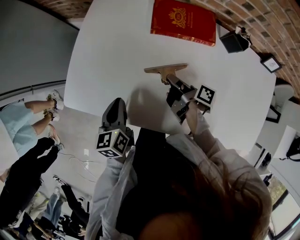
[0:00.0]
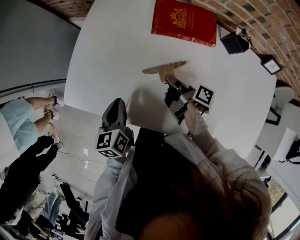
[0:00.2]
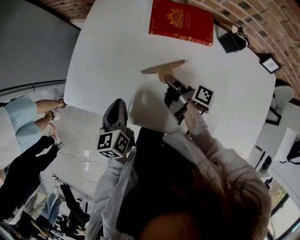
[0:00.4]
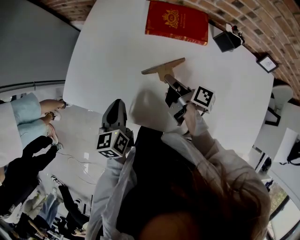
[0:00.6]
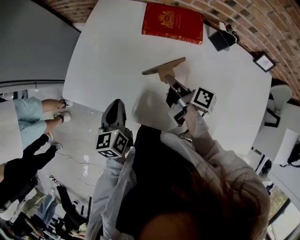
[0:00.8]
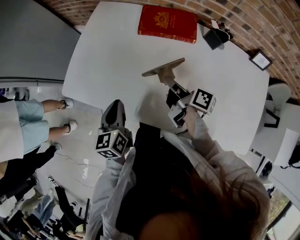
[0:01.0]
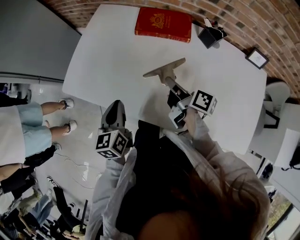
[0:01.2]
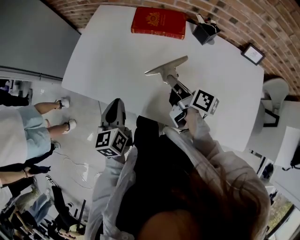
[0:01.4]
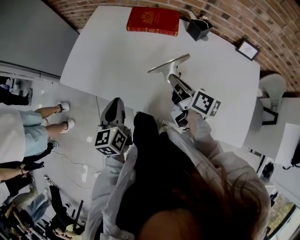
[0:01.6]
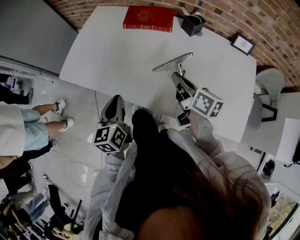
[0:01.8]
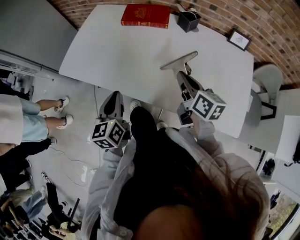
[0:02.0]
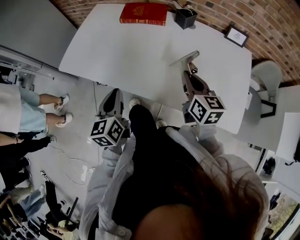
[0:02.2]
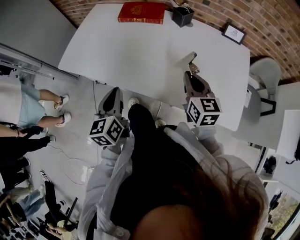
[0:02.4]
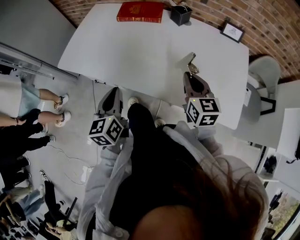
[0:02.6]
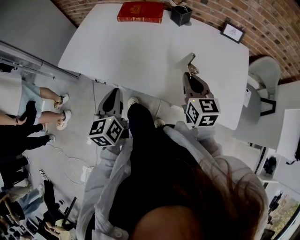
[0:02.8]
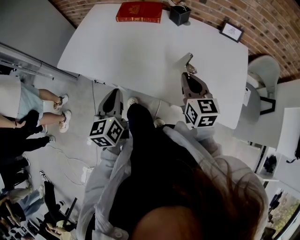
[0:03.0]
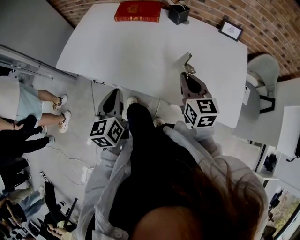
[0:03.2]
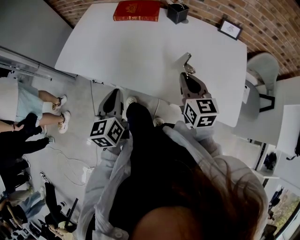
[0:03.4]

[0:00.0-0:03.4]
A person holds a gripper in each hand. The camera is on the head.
0.0 to 1.6 s: The right gripper moves backward, upward and to the right, roughly 25 cm, and changes its angle by some 40 degrees. Meanwhile the left gripper goes about 20 cm backward, to the right and upward.
1.6 to 3.4 s: Both grippers move backward and to the right, approximately 15 cm. The right gripper twists roughly 50 degrees counterclockwise, seen from behind.

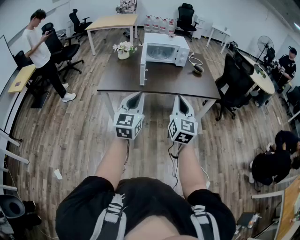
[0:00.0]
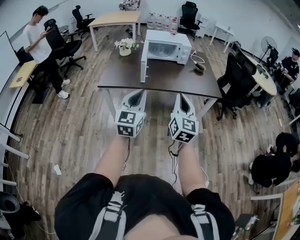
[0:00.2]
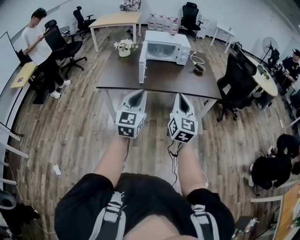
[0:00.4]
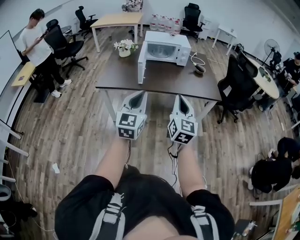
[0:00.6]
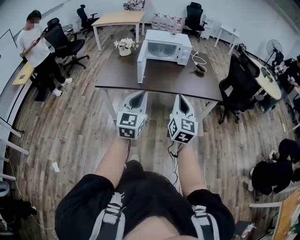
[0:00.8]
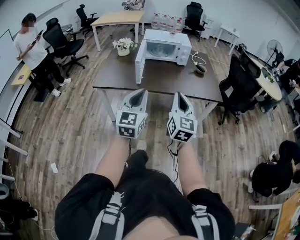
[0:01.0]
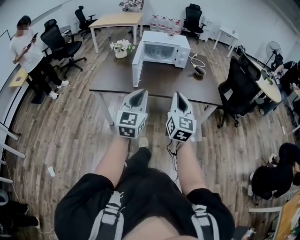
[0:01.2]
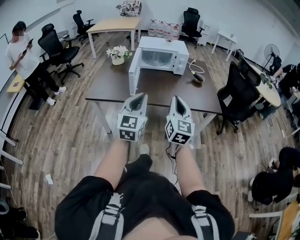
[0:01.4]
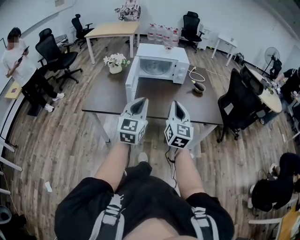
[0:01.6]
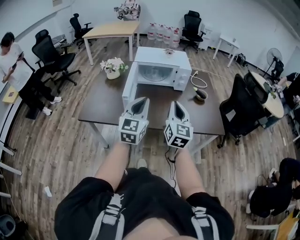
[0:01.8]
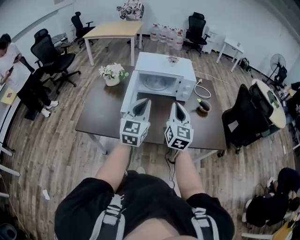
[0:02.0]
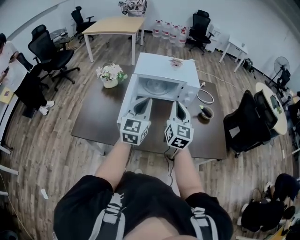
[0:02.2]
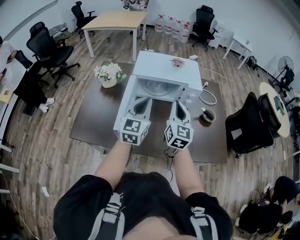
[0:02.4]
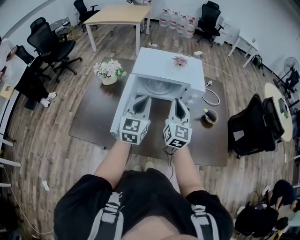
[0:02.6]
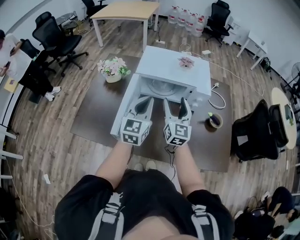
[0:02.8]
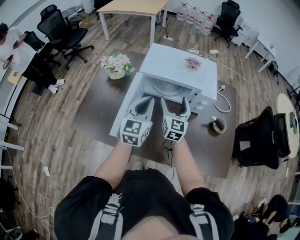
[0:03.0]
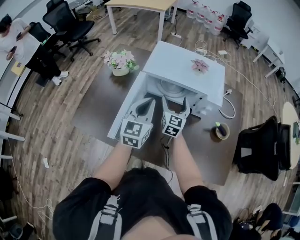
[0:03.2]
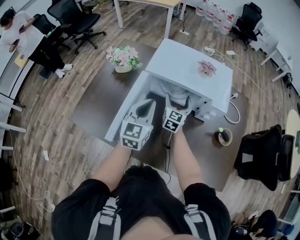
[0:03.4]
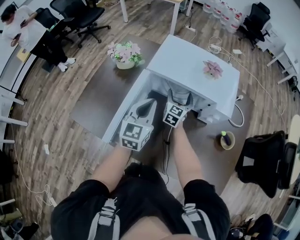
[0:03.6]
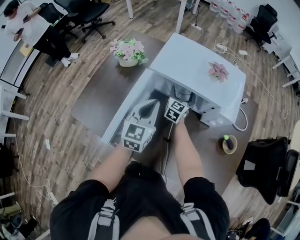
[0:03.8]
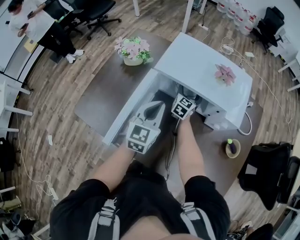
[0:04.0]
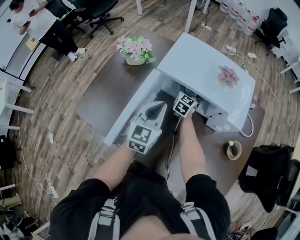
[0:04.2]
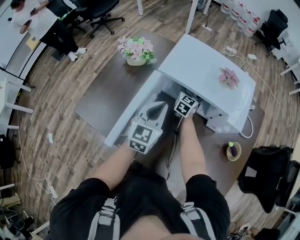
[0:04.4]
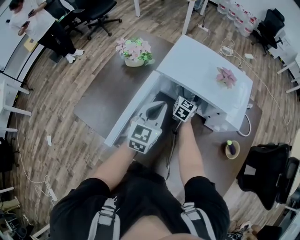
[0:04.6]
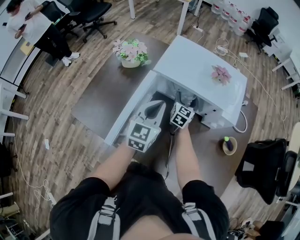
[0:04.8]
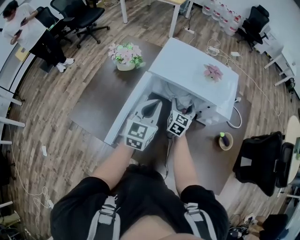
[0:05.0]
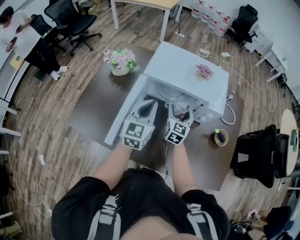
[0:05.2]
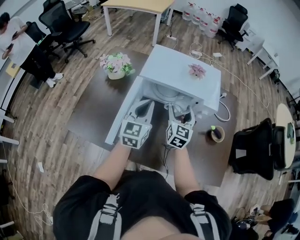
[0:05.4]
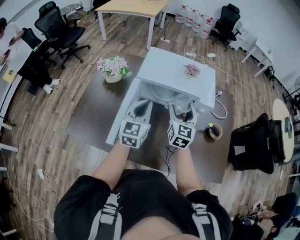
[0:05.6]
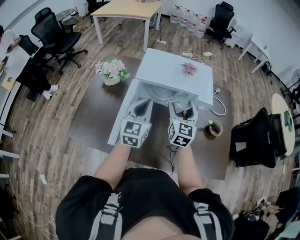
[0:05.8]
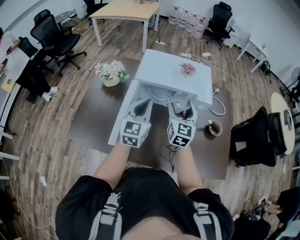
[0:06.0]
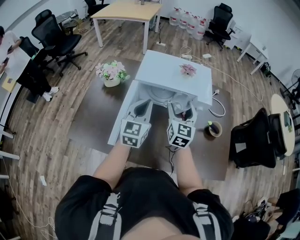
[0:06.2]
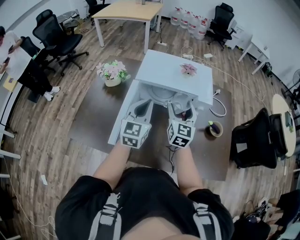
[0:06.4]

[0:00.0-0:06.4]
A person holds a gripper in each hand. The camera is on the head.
0.0 to 1.6 s: Both grippers move forward, some 25 cm.
1.6 to 3.2 s: Both grippers are carried forward, some 50 cm. The right gripper opens its fingers.
3.2 to 4.8 s: The right gripper goes some 15 cm forward and downward. The left gripper is displaced forward and downward by roughly 10 cm.
4.8 to 6.4 s: The right gripper goes approximately 25 cm upward and backward; the left gripper shifts roughly 10 cm upward and backward.

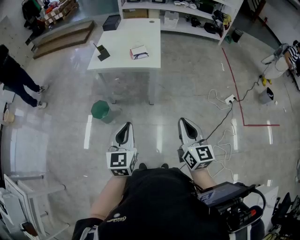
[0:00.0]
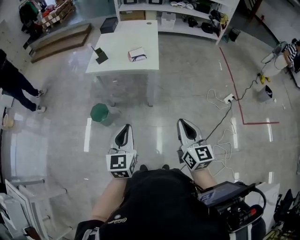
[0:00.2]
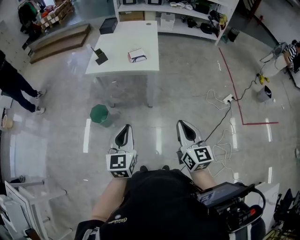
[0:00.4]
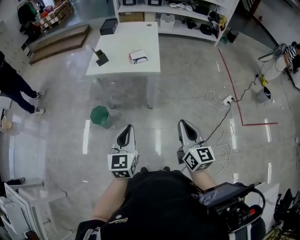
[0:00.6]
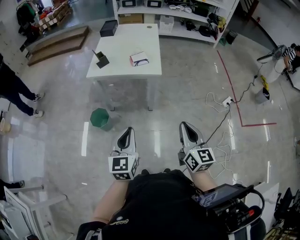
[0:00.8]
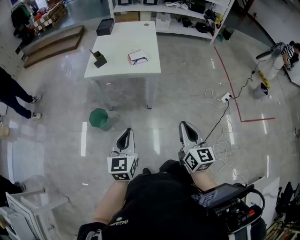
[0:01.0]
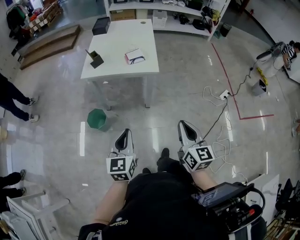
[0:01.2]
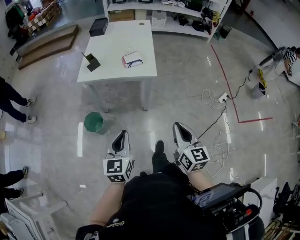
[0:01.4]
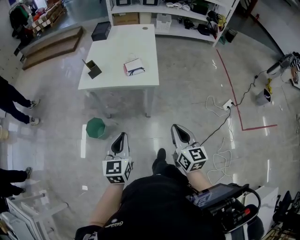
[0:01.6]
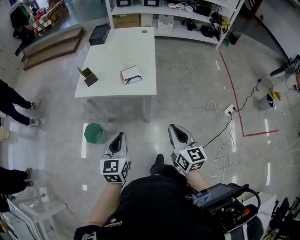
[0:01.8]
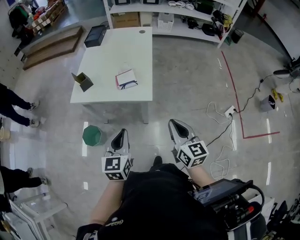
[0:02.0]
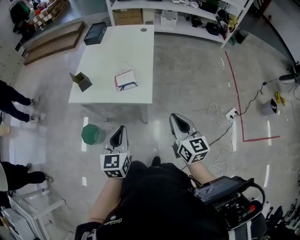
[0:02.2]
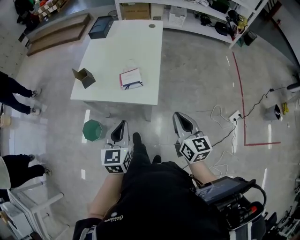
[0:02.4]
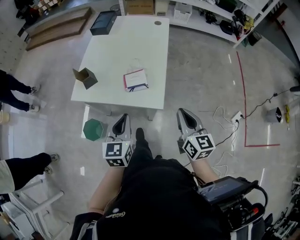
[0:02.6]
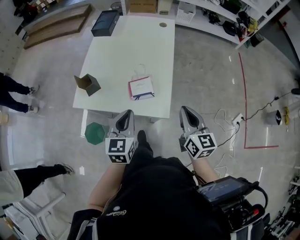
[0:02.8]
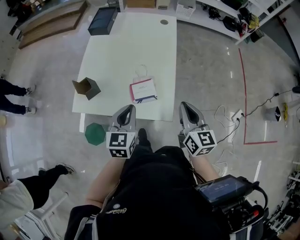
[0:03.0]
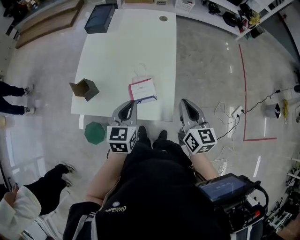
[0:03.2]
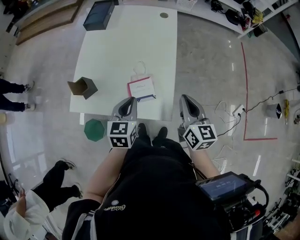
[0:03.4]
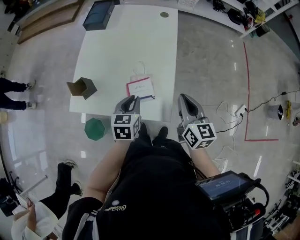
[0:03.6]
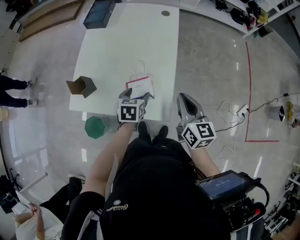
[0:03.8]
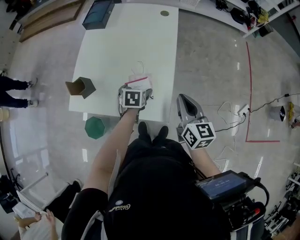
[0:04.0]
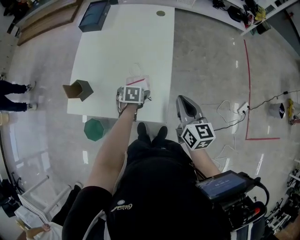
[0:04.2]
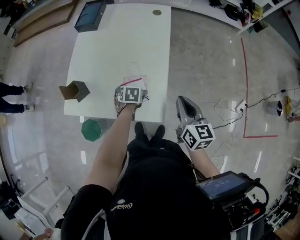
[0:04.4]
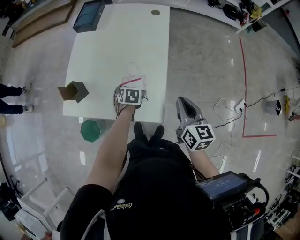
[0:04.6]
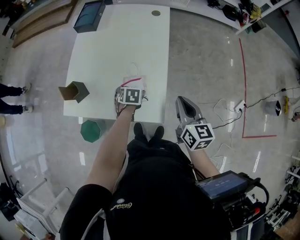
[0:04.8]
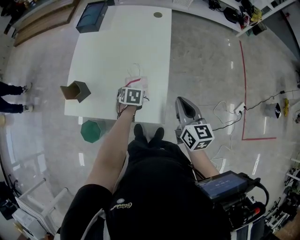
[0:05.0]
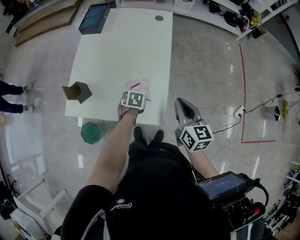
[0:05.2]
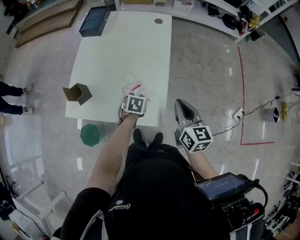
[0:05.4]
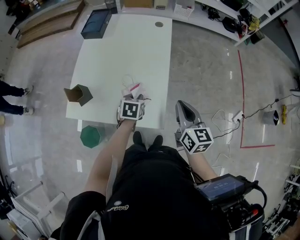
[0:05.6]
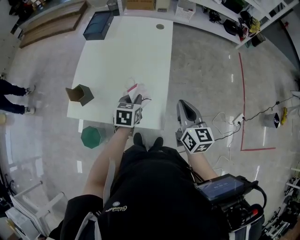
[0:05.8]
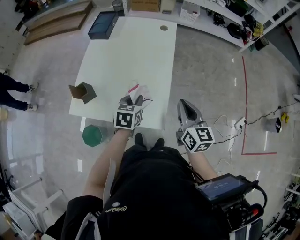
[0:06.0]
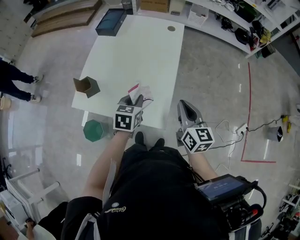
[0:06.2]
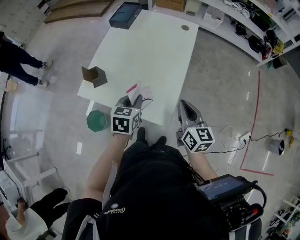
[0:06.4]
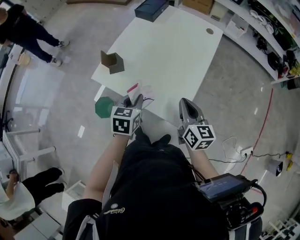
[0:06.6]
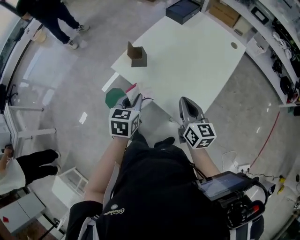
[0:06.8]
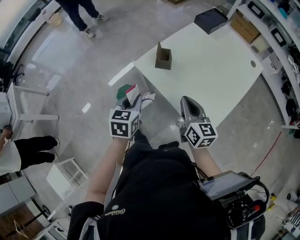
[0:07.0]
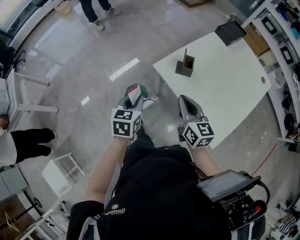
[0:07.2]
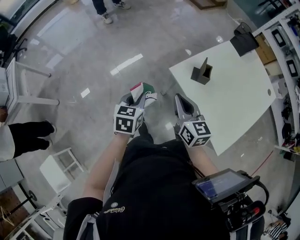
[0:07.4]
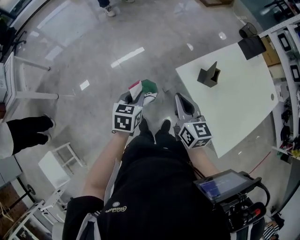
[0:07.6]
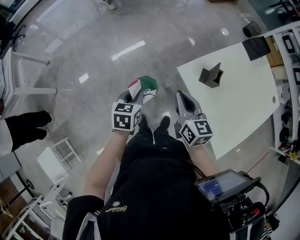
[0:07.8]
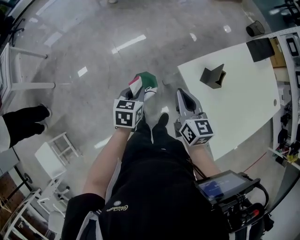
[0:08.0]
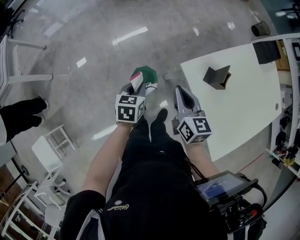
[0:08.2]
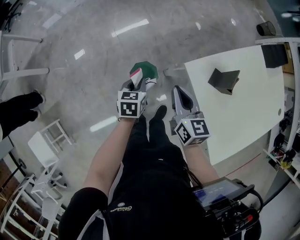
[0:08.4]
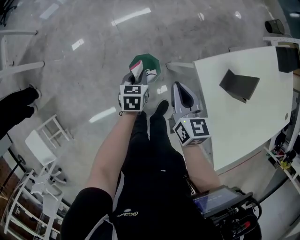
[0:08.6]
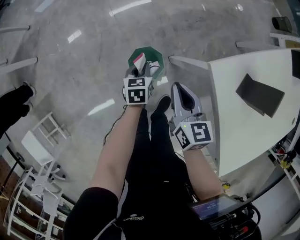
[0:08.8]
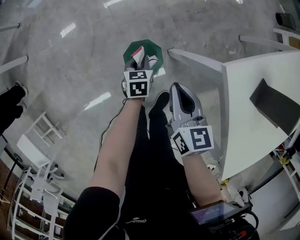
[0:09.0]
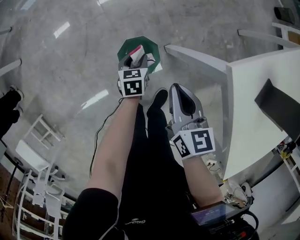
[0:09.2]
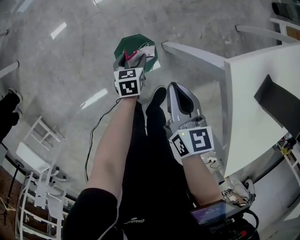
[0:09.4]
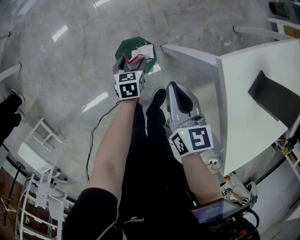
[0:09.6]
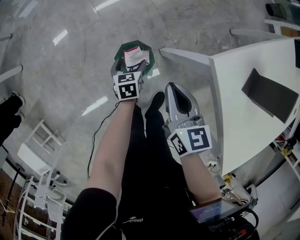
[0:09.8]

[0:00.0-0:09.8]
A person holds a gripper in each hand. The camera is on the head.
0.0 to 1.4 s: Both grippers travel together forward, some 10 cm.
1.4 to 2.8 s: The pair of grippers is taken forward, roughly 40 cm.
2.8 to 4.2 s: The left gripper is displaced downward and forward by approximately 30 cm, angles its fingers downward, by approximately 40 degrees, and opens up. The right gripper goes about 10 cm forward.
4.2 to 5.6 s: The left gripper goes roughly 5 cm upward, and closes.
5.6 to 7.0 s: The left gripper moves roughly 35 cm, and swivels roughly 40 degrees, while the right gripper changes place by some 30 cm, and rotates about 40 degrees.
7.0 to 8.4 s: The right gripper is displaced to the left and forward by roughly 35 cm, and changes its angle by some 20 degrees. Meanwhile the left gripper goes roughly 35 cm to the left, downward and forward, and rotates some 30 degrees.
8.4 to 9.8 s: The right gripper goes some 15 cm downward. Meanwhile the left gripper goes approximately 30 cm downward, and opens up.

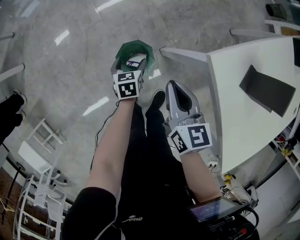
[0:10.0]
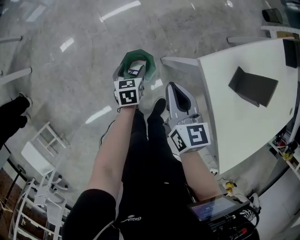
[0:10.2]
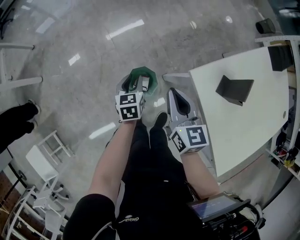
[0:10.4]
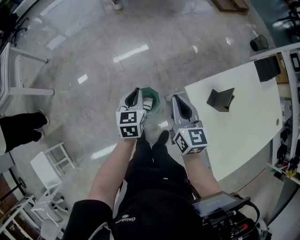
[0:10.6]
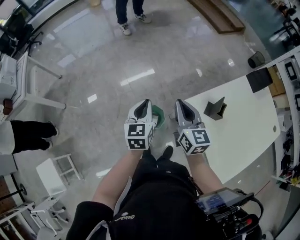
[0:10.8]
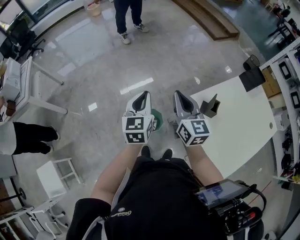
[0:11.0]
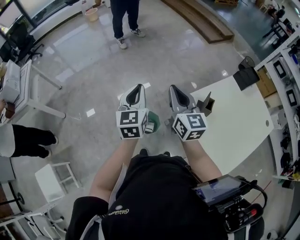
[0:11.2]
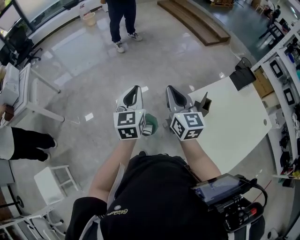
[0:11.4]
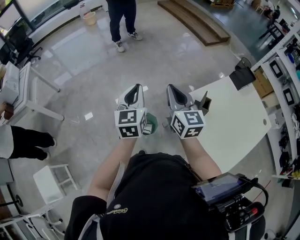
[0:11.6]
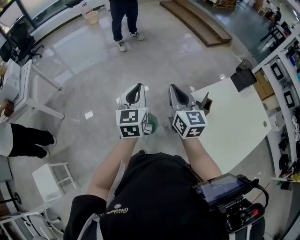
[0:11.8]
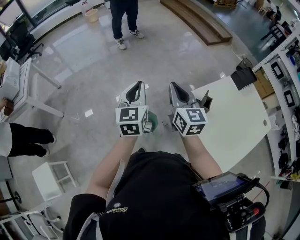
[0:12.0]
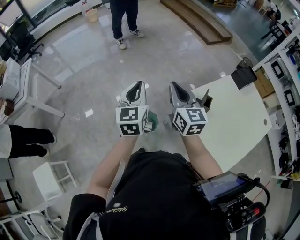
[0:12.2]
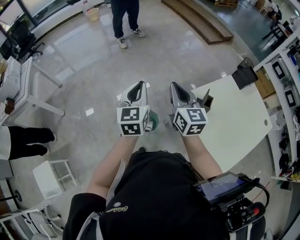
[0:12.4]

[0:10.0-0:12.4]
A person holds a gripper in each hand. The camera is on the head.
10.0 to 11.2 s: The right gripper travels upward by roughly 40 cm, and rotates approximately 30 degrees, while the left gripper shifts approximately 60 cm upward, points its fingers some 40 degrees further upward, and closes its fingers.
11.2 to 12.4 s: The grippers stay close to where they were, moving slightly.

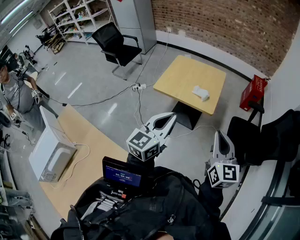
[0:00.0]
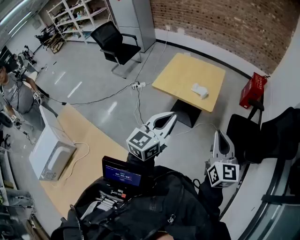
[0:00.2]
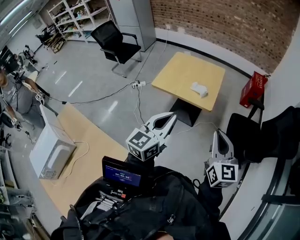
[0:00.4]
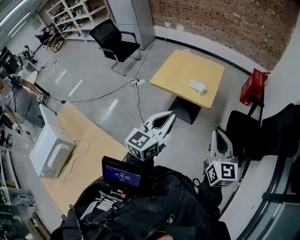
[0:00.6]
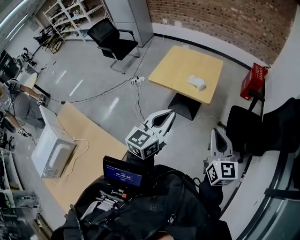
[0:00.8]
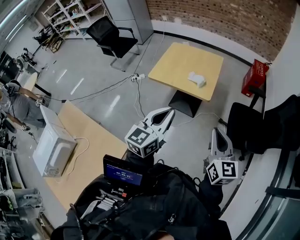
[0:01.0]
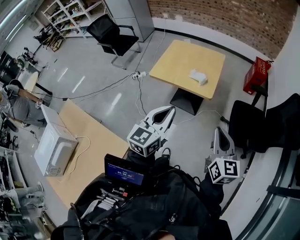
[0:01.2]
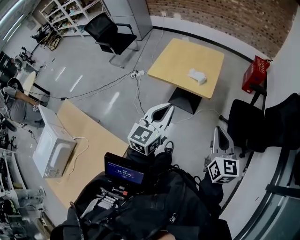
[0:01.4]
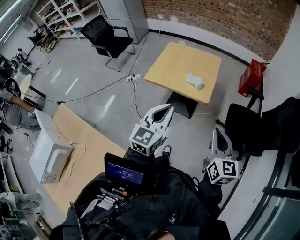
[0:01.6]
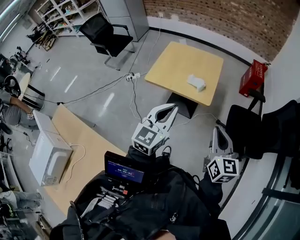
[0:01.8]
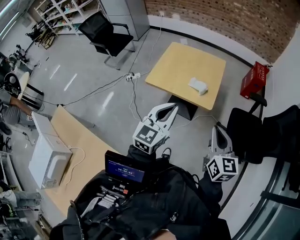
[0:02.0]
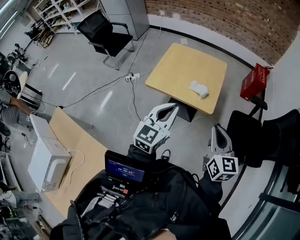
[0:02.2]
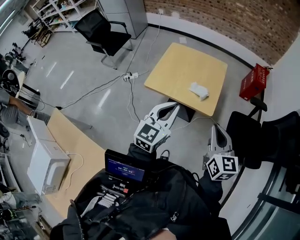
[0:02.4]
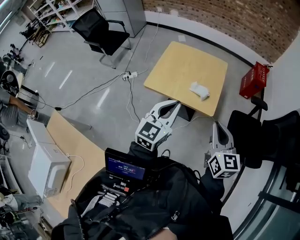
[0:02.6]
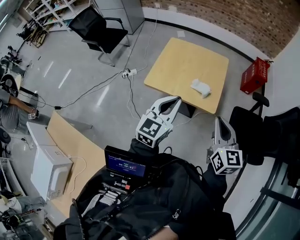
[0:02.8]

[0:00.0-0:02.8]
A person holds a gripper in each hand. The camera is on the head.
0.0 to 1.4 s: The right gripper shifts some 10 cm downward and to the right. Meanwhile the left gripper shifts by about 5 cm.
1.4 to 2.8 s: The left gripper shifts approximately 20 cm forward. The right gripper heads forward and to the left, covering some 25 cm.
